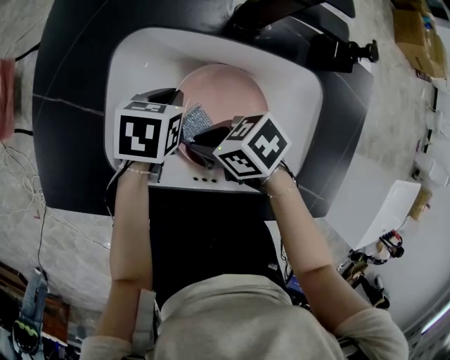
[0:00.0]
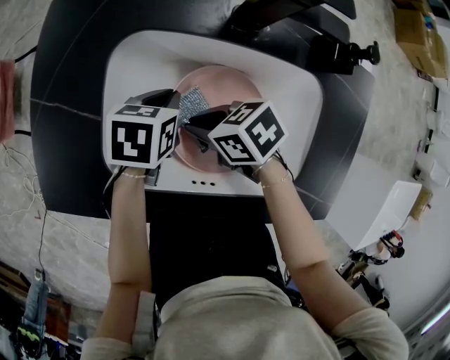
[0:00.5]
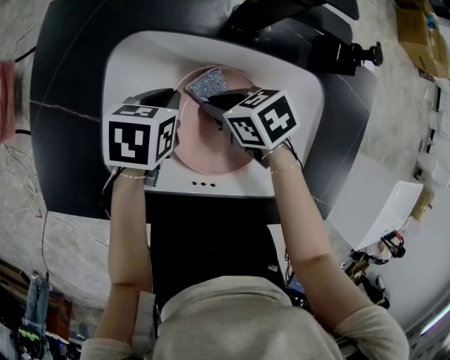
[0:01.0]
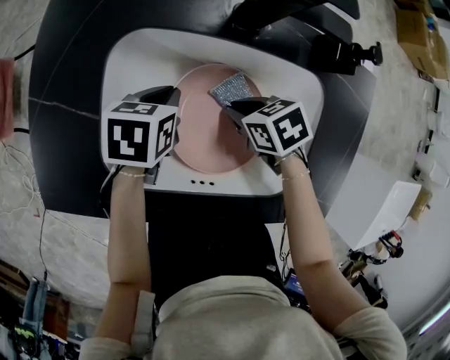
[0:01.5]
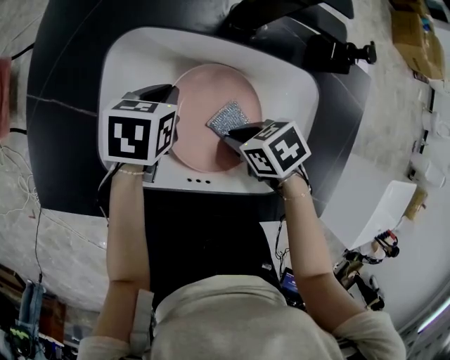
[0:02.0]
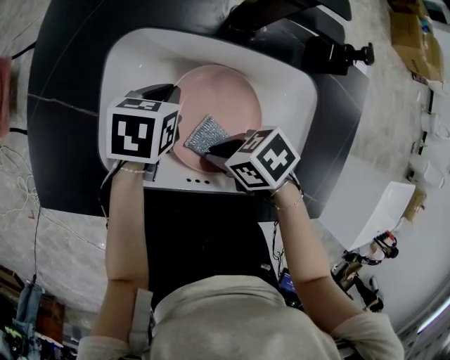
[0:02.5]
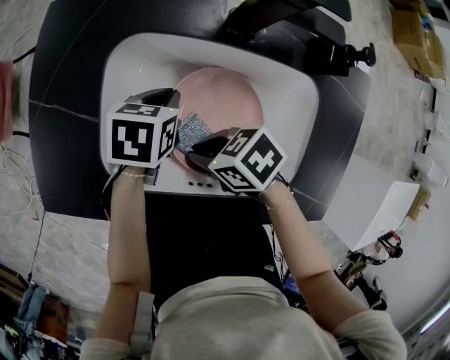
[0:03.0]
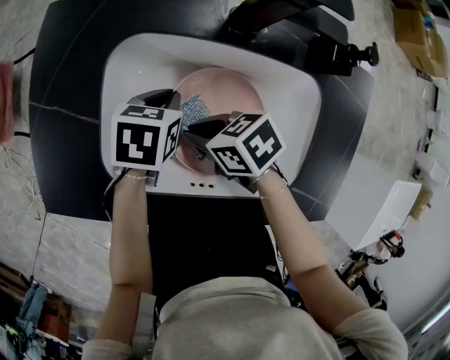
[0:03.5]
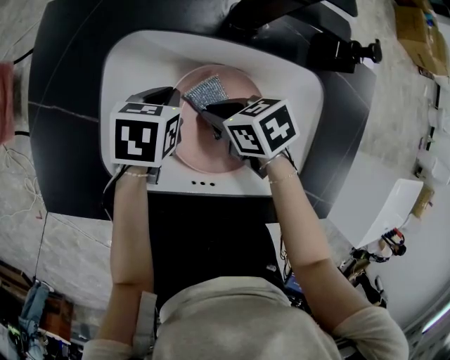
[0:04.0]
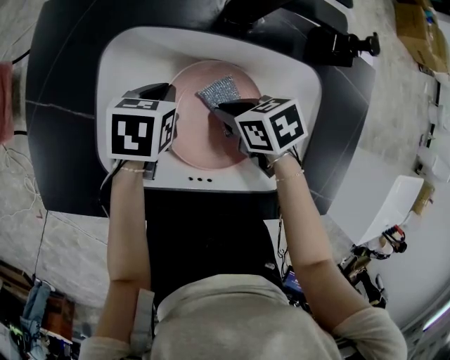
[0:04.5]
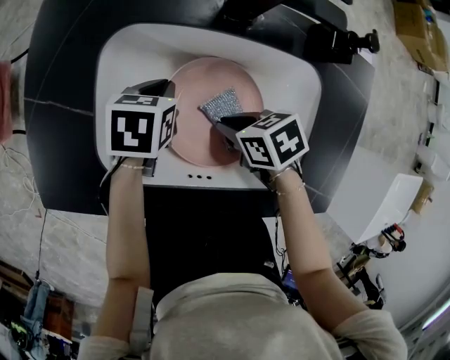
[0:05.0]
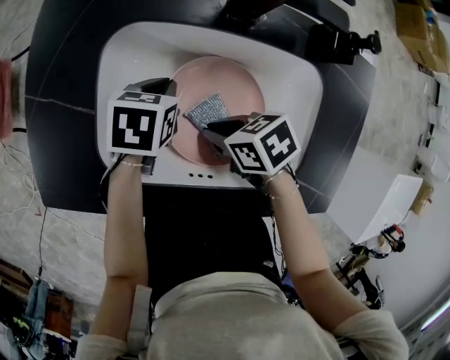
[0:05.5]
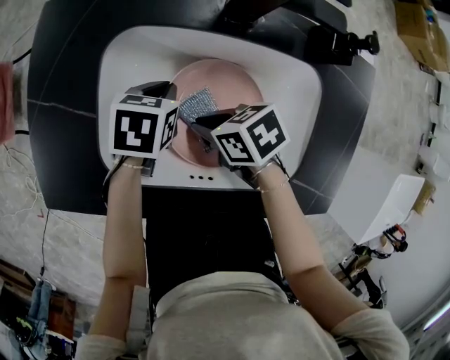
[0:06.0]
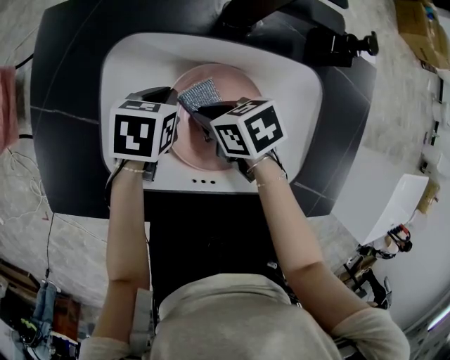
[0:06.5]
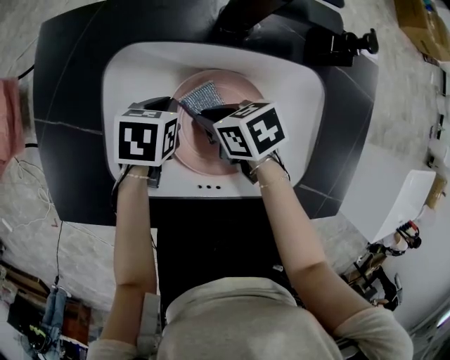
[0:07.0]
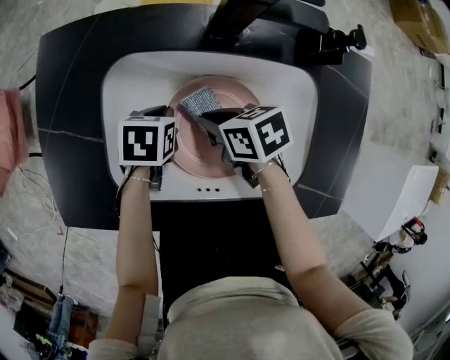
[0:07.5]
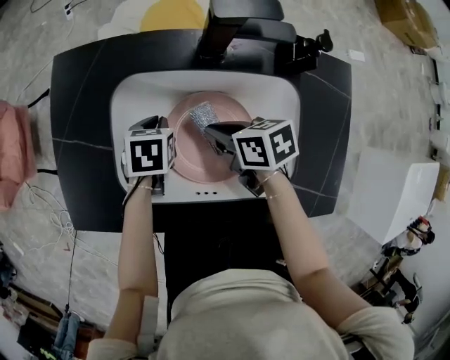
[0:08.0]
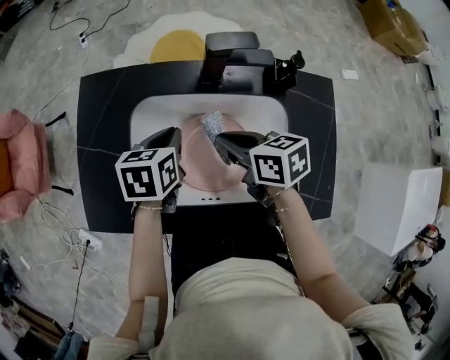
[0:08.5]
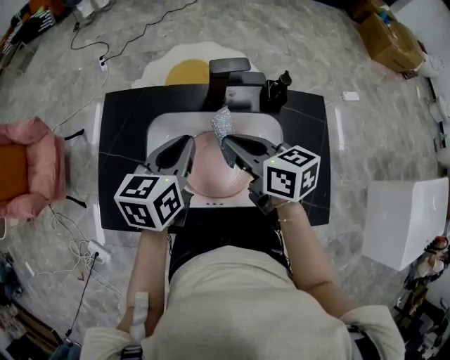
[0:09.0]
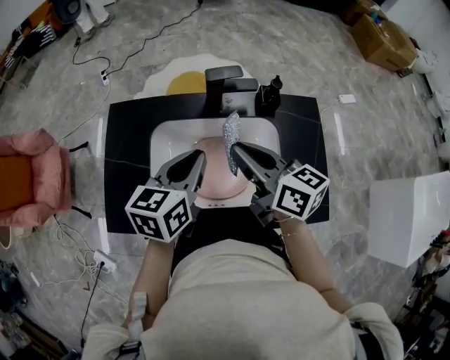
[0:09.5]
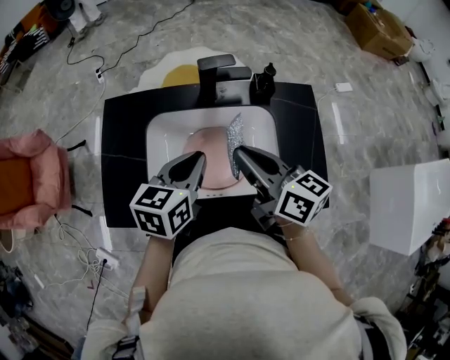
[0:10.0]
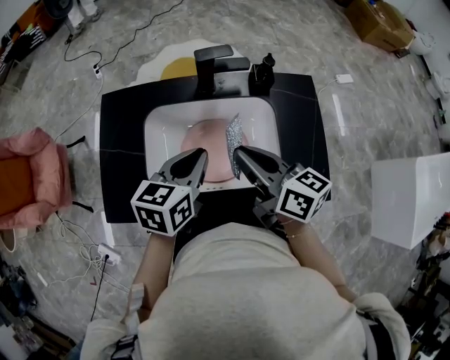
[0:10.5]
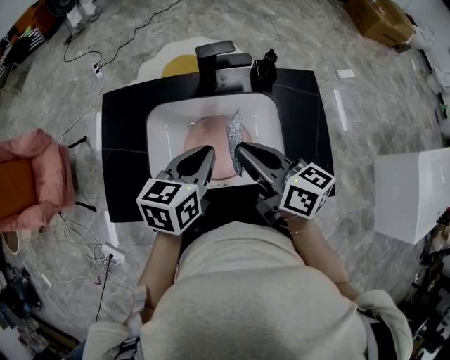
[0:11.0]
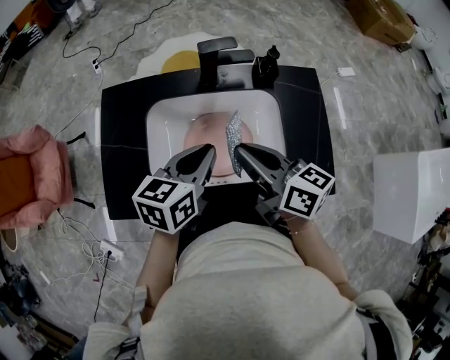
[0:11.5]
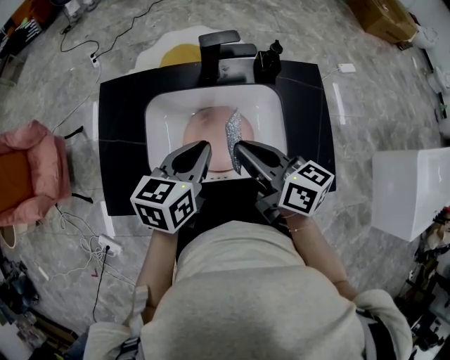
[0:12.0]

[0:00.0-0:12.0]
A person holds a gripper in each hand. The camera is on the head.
0:00.0 to 0:02.0: The right gripper changes place by about 10 cm.
0:02.0 to 0:04.0: The right gripper changes place by approximately 10 cm.
0:04.0 to 0:06.0: The grippers move only a little.
0:06.0 to 0:08.0: The right gripper ends up roughly 5 cm from where it was, and rotates about 20 degrees.
0:08.0 to 0:10.0: The two grippers go roughly 25 cm upward. The right gripper tilts its fingers approximately 40 degrees upward, while the left gripper tilts its fingers approximately 40 degrees upward.
0:10.0 to 0:12.0: The grippers make only small movements.

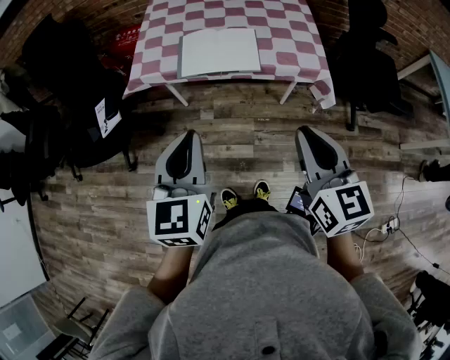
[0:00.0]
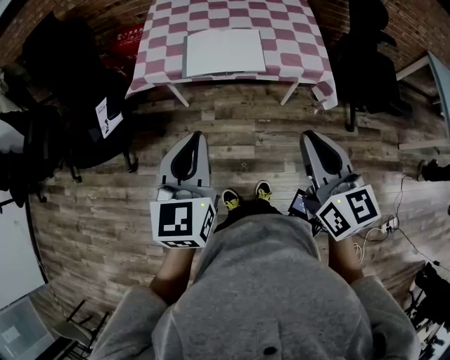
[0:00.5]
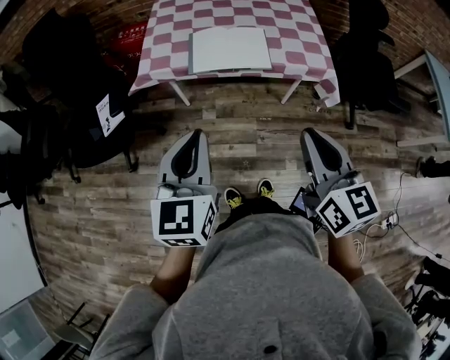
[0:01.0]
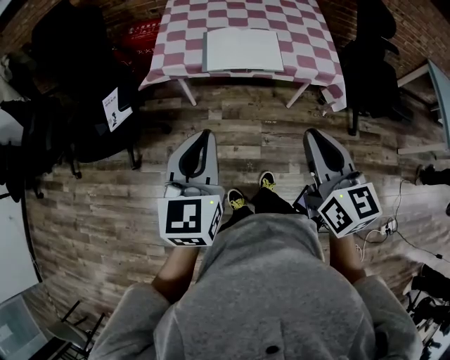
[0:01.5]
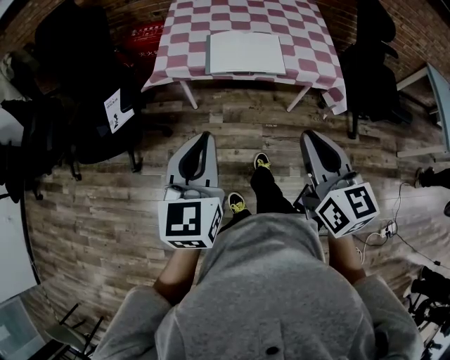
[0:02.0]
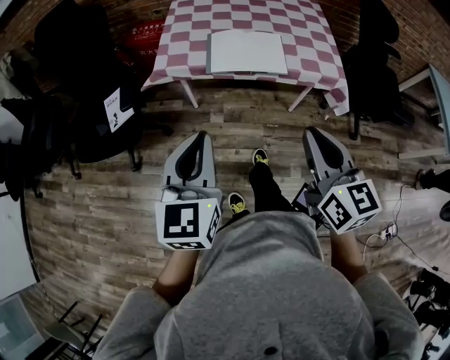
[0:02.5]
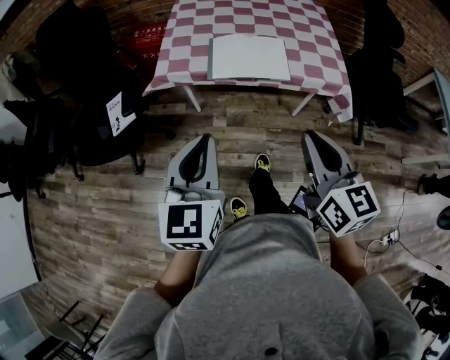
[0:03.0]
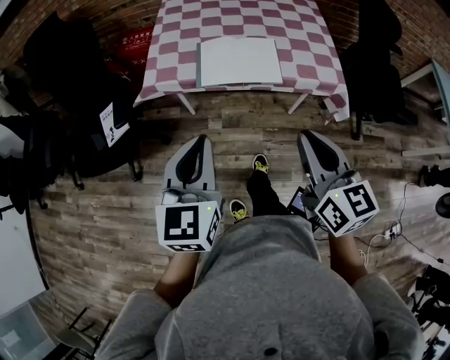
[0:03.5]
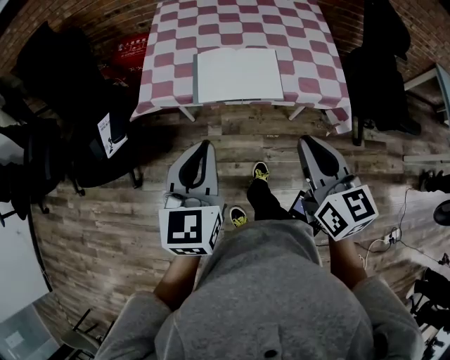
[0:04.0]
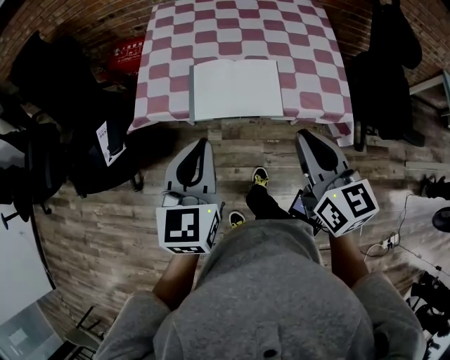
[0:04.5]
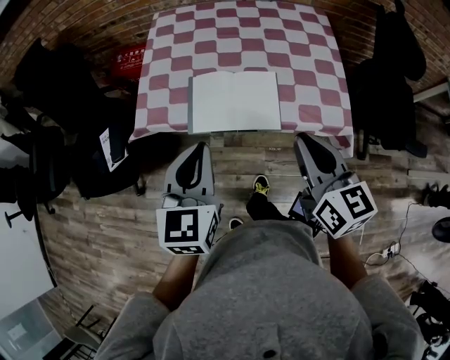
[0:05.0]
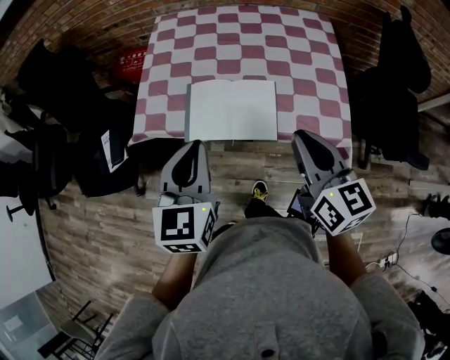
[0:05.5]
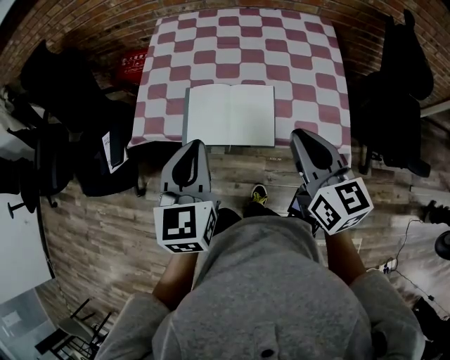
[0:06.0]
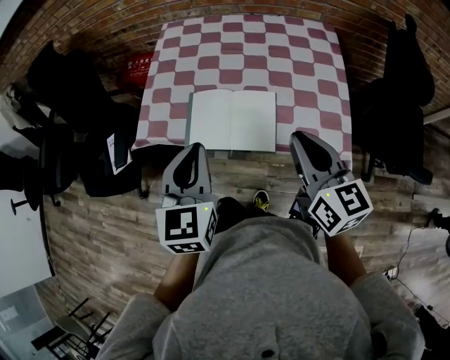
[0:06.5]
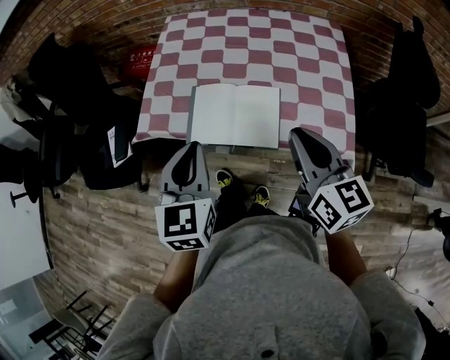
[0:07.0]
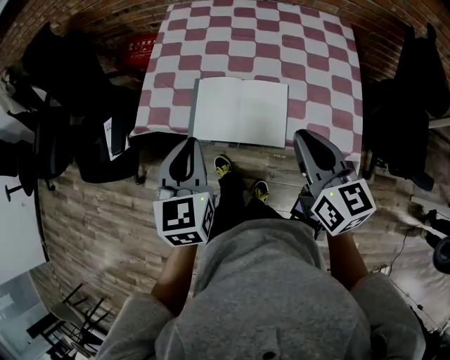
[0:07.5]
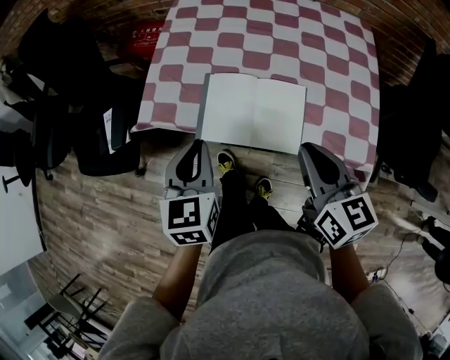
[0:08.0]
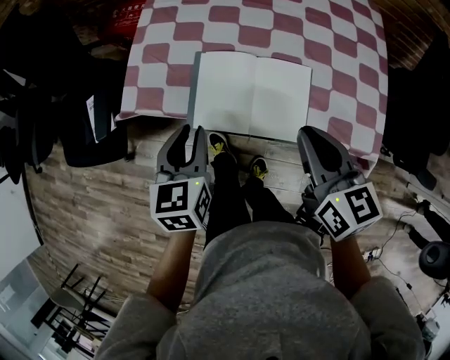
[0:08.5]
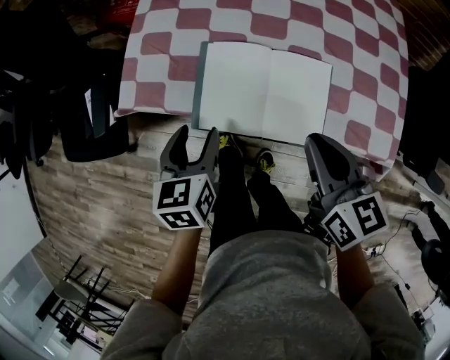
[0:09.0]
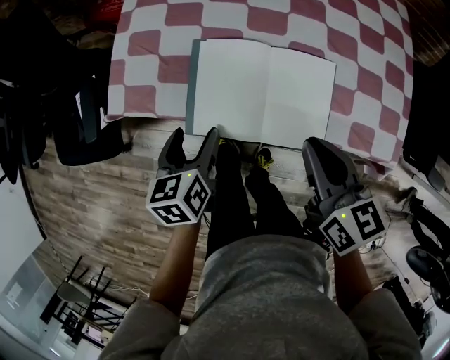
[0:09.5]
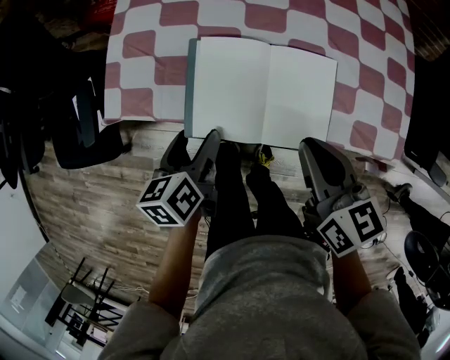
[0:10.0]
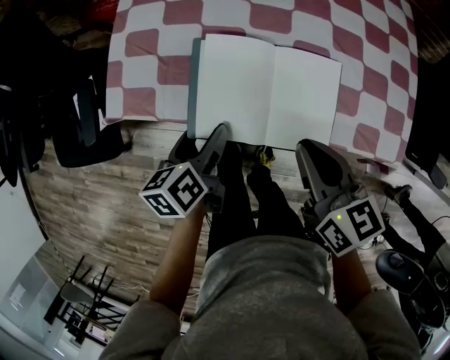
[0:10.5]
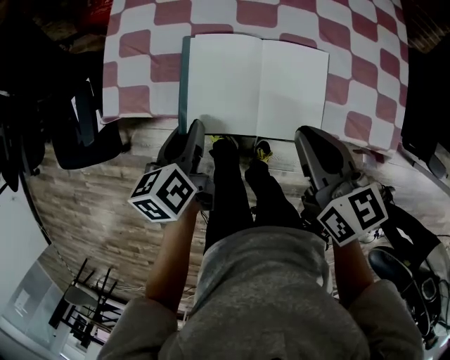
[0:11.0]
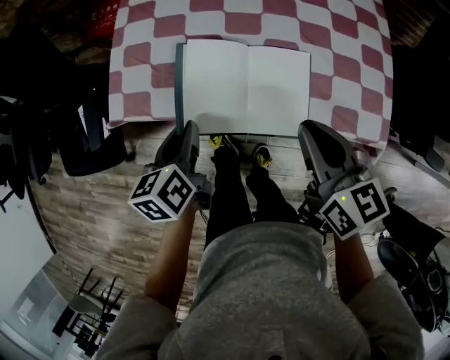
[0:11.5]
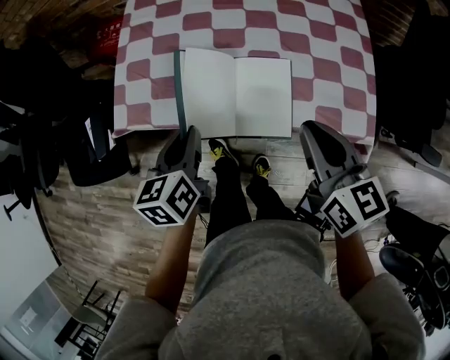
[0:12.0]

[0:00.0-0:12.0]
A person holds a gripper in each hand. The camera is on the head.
0:00.0 to 0:02.0: Both grippers travel together to the left, roughly 10 cm.
0:02.0 to 0:04.0: Both grippers travel together forward, some 15 cm.
0:04.0 to 0:06.0: Both grippers move forward and to the right, roughly 15 cm.
0:06.0 to 0:08.0: The left gripper moves downward and to the left, roughly 10 cm. The right gripper goes some 5 cm downward.
0:08.0 to 0:10.0: The left gripper is displaced downward by roughly 15 cm, swivels some 40 degrees, and opens its fingers. Meanwhile the right gripper goes some 10 cm downward.
0:10.0 to 0:12.0: The right gripper goes roughly 10 cm upward and to the right, while the left gripper shifts about 10 cm upward, and closes its fingers.

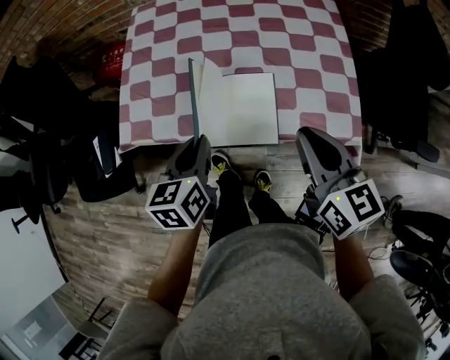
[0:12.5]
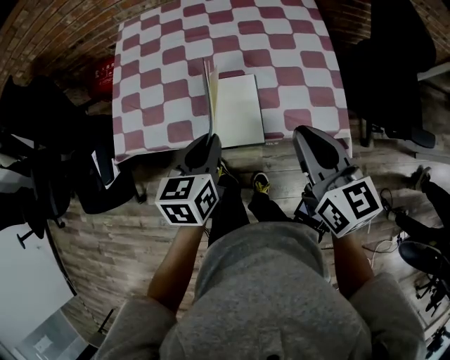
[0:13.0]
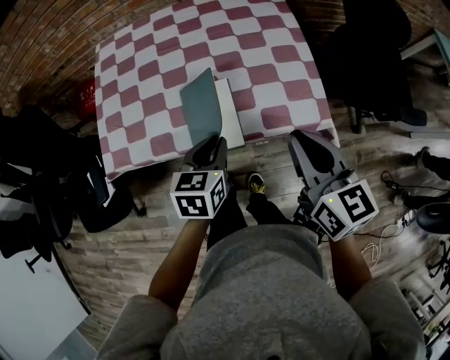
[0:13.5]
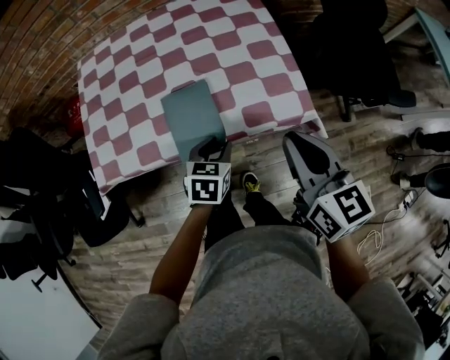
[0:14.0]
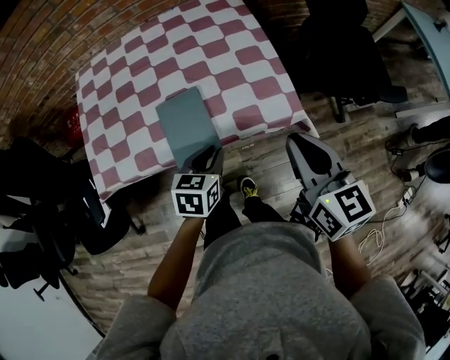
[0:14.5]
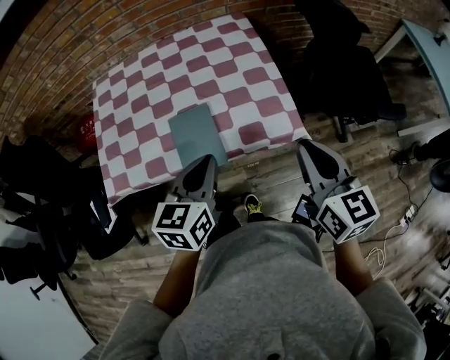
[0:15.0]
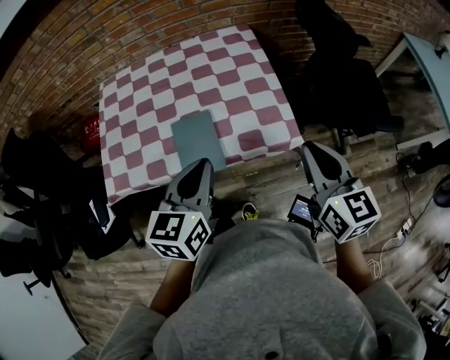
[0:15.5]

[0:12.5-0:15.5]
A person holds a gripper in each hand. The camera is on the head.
0:12.5 to 0:14.0: The left gripper is displaced to the right and downward by roughly 20 cm, and turns by approximately 40 degrees; the right gripper is displaced to the right by about 10 cm.
0:14.0 to 0:15.5: The left gripper goes some 25 cm upward, turns by roughly 30 degrees, and closes up. Meanwhile the right gripper travels to the right and upward by about 10 cm.
